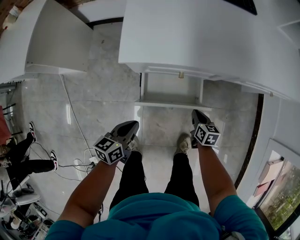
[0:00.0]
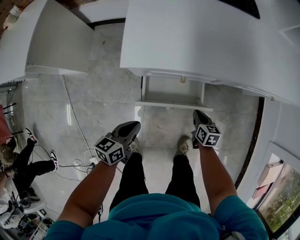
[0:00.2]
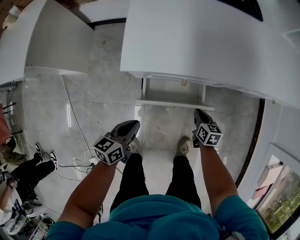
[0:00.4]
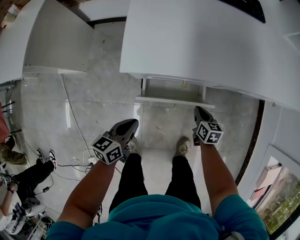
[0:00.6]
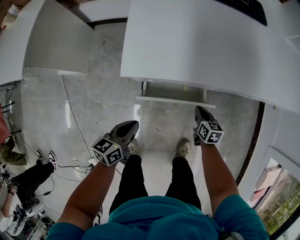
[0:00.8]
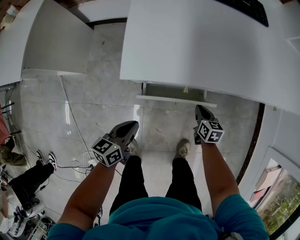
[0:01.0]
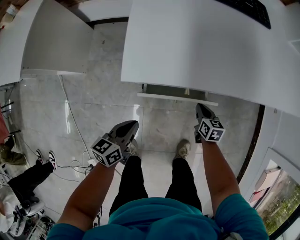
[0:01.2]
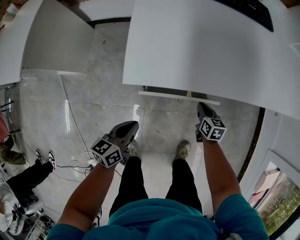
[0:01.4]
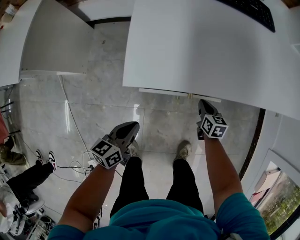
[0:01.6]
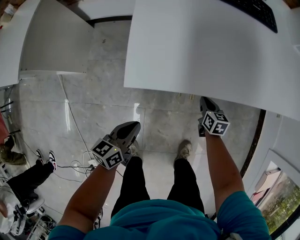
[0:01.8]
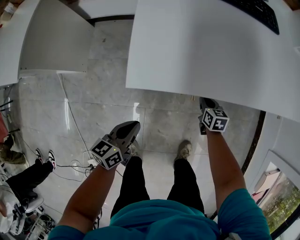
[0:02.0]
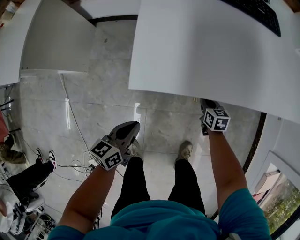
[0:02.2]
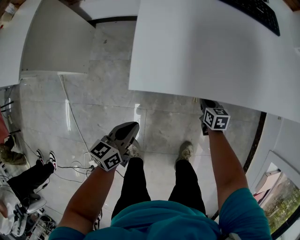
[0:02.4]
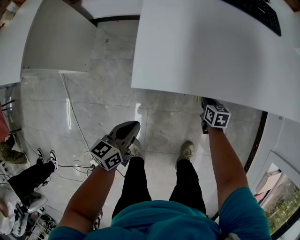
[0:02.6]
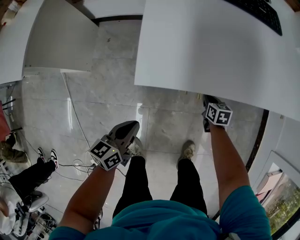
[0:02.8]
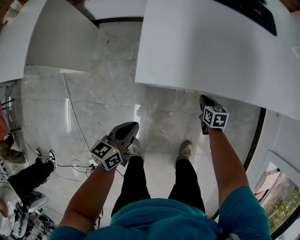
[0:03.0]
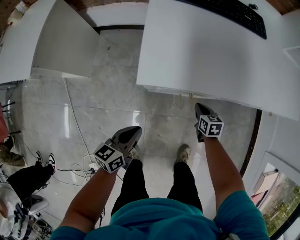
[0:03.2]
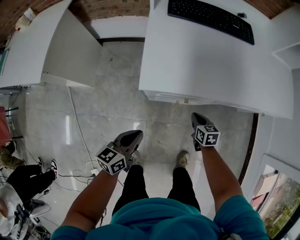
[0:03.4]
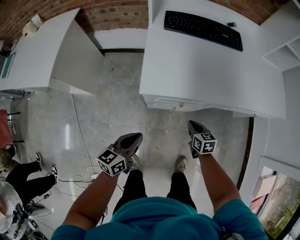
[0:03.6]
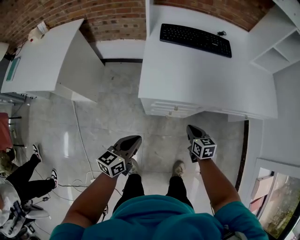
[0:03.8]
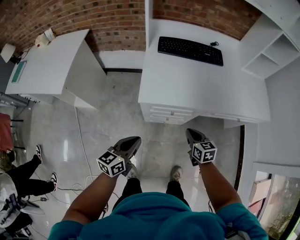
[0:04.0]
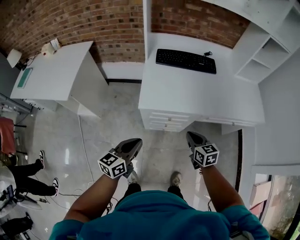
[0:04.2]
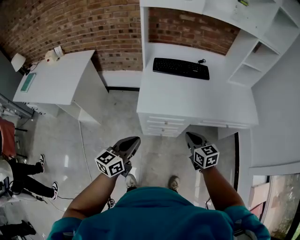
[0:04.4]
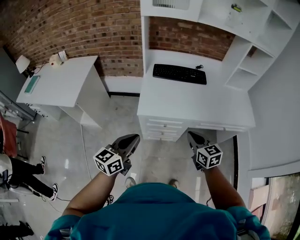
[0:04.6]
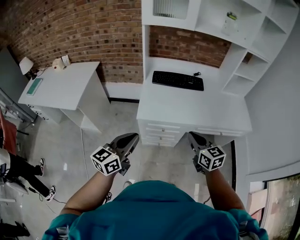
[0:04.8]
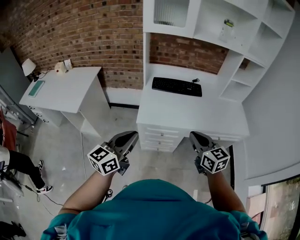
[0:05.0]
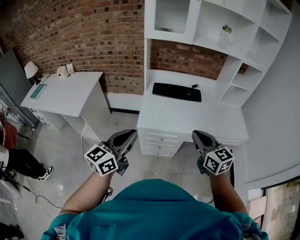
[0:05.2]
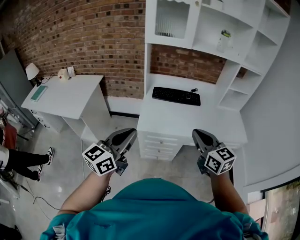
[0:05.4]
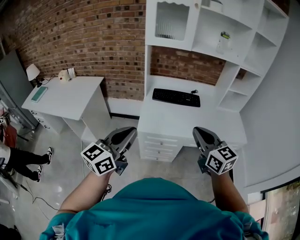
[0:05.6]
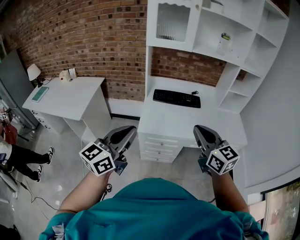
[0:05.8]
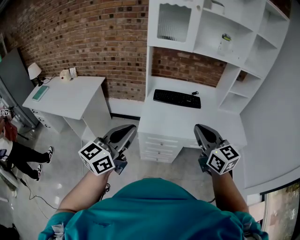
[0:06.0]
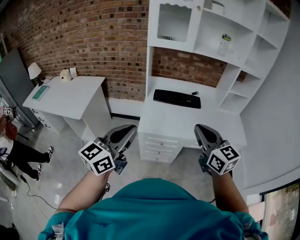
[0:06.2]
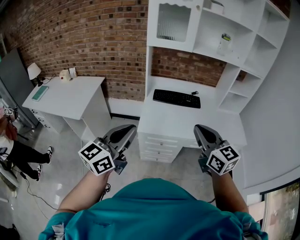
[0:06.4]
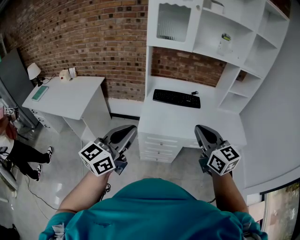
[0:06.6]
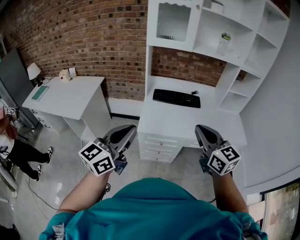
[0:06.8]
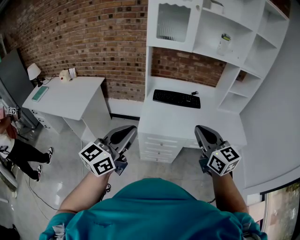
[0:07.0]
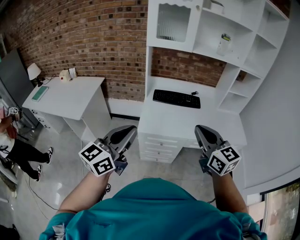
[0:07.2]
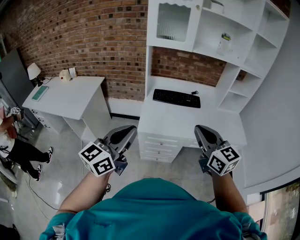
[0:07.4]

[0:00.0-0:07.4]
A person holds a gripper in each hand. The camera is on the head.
0:00.0 to 0:01.4: The left gripper goes some 5 cm forward; the right gripper goes approximately 10 cm forward.
0:01.4 to 0:03.0: There are only small adjustments of the grippers.
0:03.0 to 0:04.4: The grippers both shift upward by approximately 40 cm. The left gripper swivels some 20 degrees; the right gripper swivels approximately 30 degrees.
0:04.4 to 0:06.0: Both grippers move upward, some 30 cm. The left gripper changes its angle by roughly 20 degrees. The right gripper swivels roughly 30 degrees.
0:06.0 to 0:07.4: The two grippers keep their place.

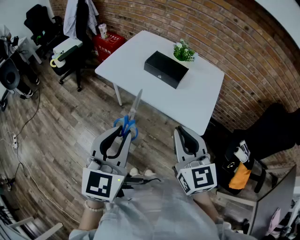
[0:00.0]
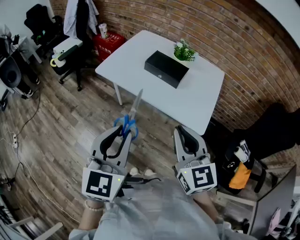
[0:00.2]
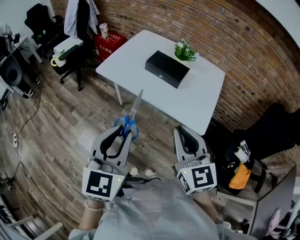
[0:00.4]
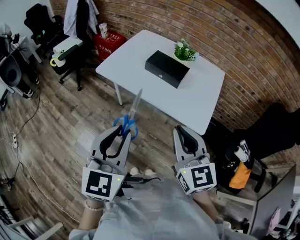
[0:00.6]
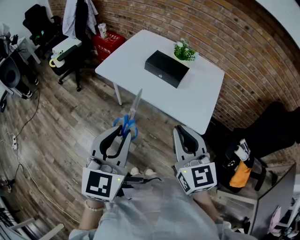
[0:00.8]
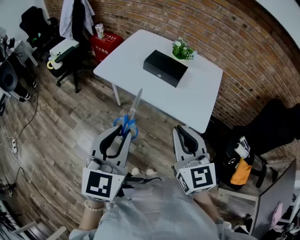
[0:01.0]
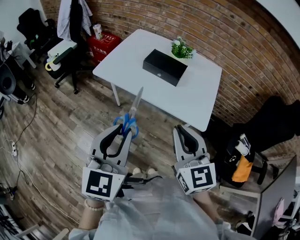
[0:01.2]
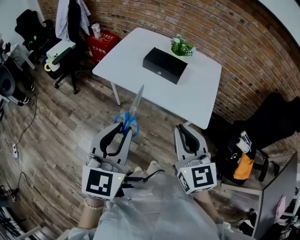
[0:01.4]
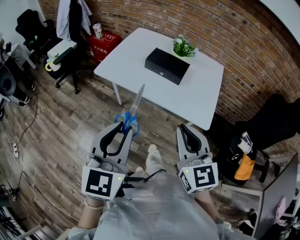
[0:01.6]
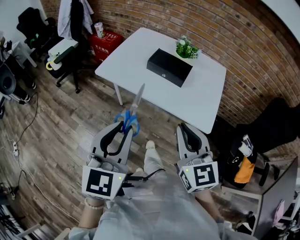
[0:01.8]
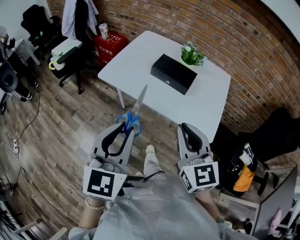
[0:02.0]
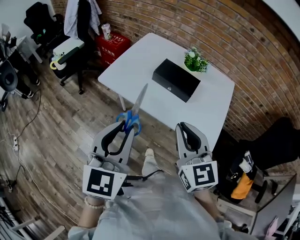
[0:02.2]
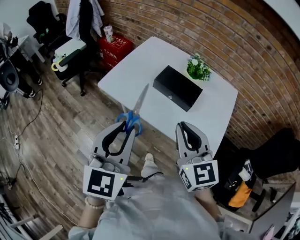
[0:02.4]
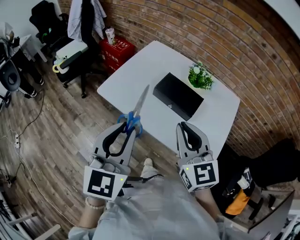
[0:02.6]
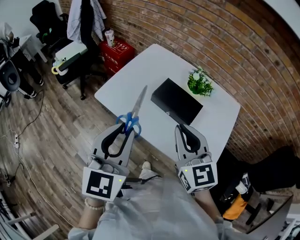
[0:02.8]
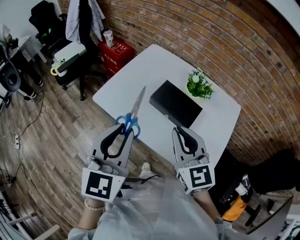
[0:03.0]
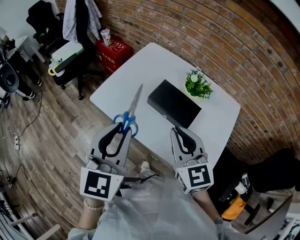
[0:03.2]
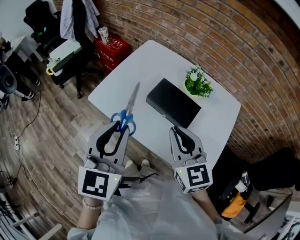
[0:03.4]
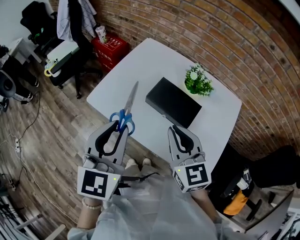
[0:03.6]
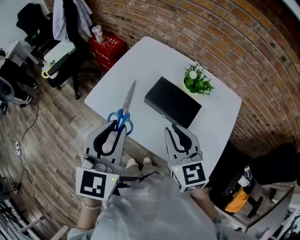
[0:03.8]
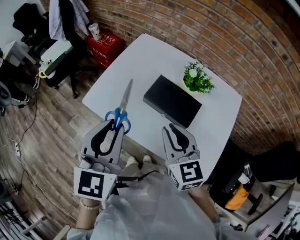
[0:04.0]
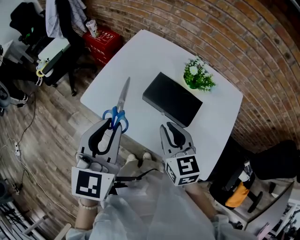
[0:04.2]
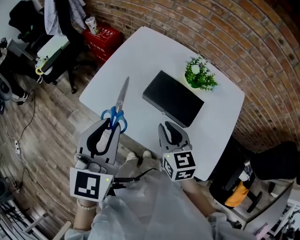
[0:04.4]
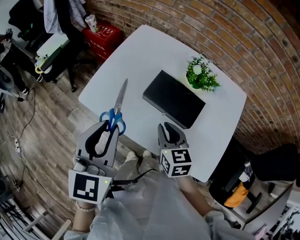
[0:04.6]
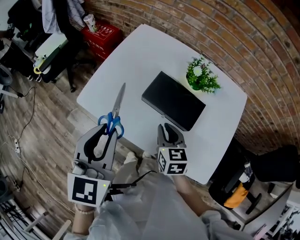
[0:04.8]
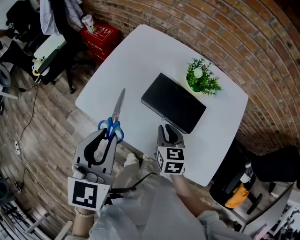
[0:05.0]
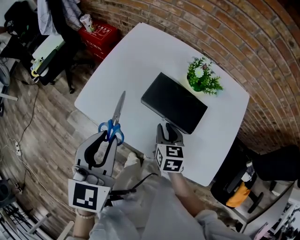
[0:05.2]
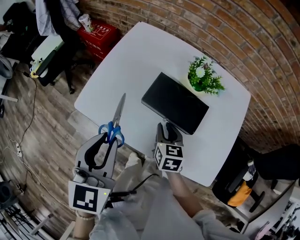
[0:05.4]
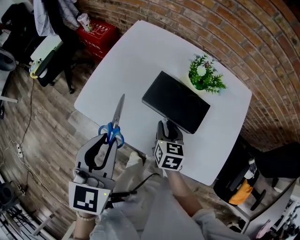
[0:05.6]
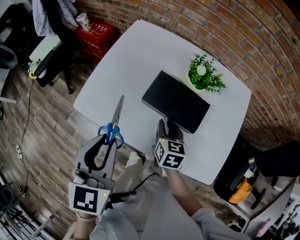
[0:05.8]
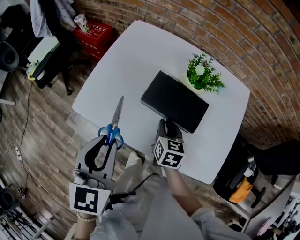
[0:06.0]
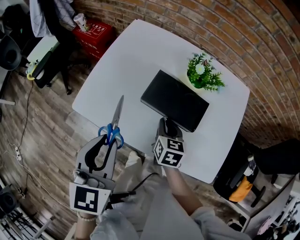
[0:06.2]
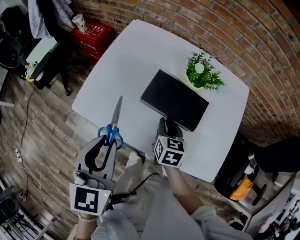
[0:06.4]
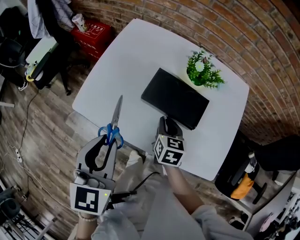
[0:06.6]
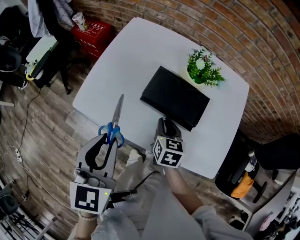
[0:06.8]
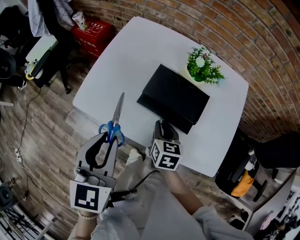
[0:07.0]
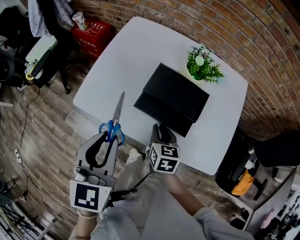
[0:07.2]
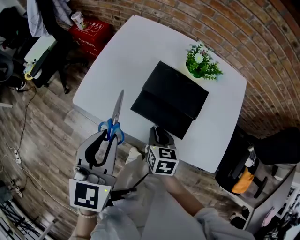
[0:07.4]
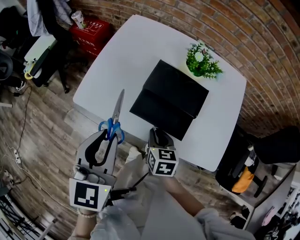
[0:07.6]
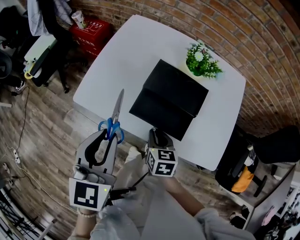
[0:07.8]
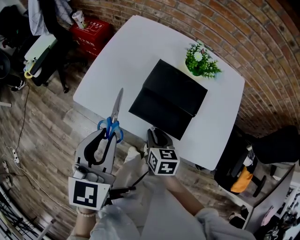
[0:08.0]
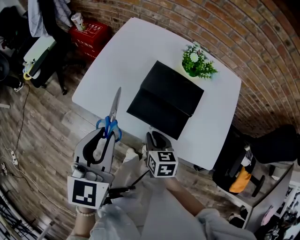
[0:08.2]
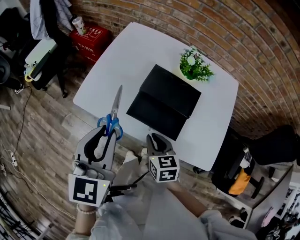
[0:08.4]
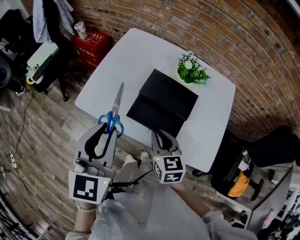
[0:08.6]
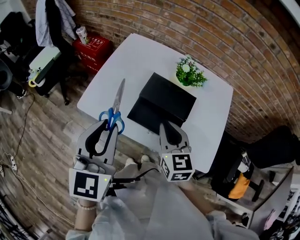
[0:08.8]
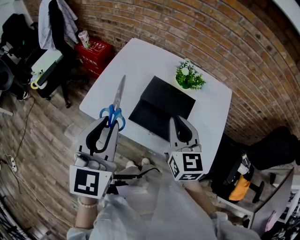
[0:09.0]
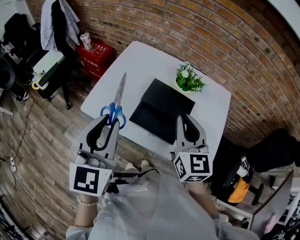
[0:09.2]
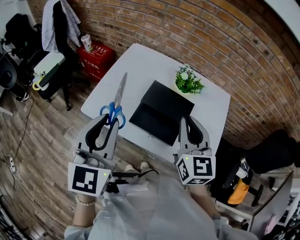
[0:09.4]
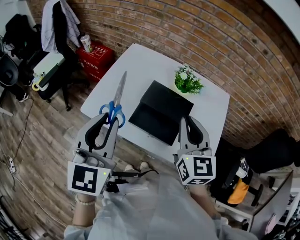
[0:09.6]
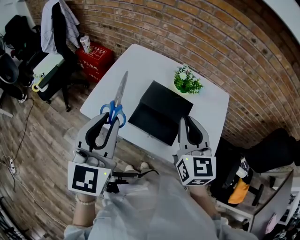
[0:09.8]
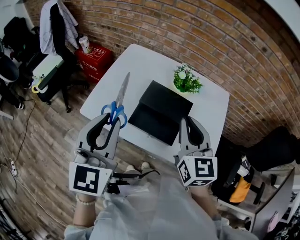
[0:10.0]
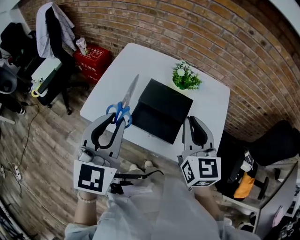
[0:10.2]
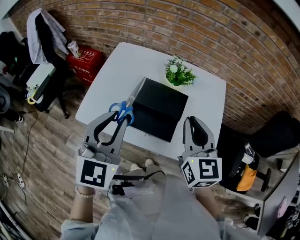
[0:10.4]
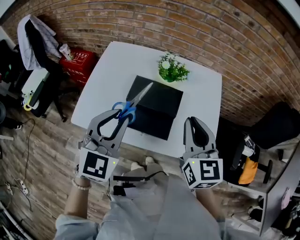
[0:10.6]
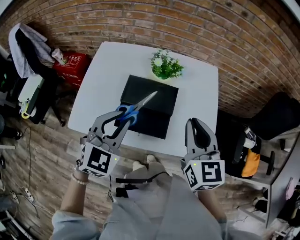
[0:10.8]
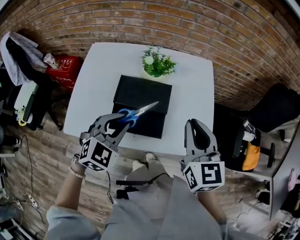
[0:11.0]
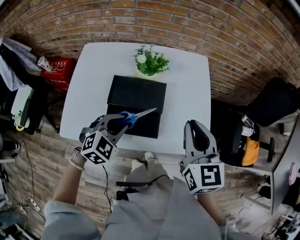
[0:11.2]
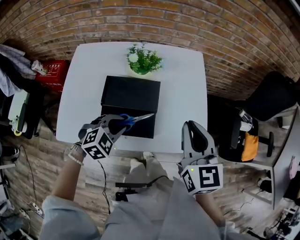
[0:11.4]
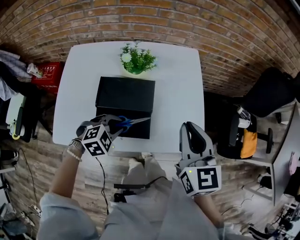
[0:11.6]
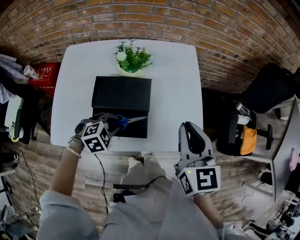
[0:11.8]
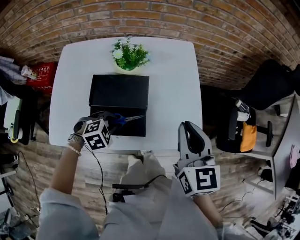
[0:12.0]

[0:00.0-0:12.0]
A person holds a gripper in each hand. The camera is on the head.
0:00.0 to 0:01.6: The grippers make only small movements.
0:01.6 to 0:03.0: The two grippers go roughly 30 cm forward.
0:03.0 to 0:04.4: The left gripper is displaced forward by about 10 cm. Meanwhile the right gripper shifts approximately 15 cm downward and forward, and turns by about 20 degrees.
0:04.4 to 0:06.0: The right gripper is displaced downward and forward by about 15 cm, and swivels some 30 degrees. Meanwhile the left gripper goes approximately 5 cm downward.
0:06.0 to 0:07.6: The right gripper goes about 10 cm backward.
0:07.6 to 0:09.0: The right gripper is displaced upward by approximately 25 cm, and swivels approximately 40 degrees, while the left gripper travels upward by some 10 cm.
0:09.0 to 0:10.4: The right gripper travels to the right by approximately 5 cm; the left gripper shifts by approximately 5 cm, and rotates roughly 20 degrees.
0:10.4 to 0:12.0: The left gripper goes roughly 30 cm downward, and tips its fingers downward by roughly 60 degrees, while the right gripper shifts by some 15 cm.

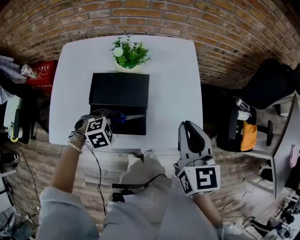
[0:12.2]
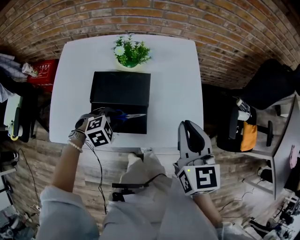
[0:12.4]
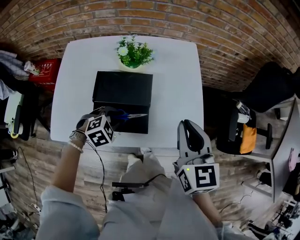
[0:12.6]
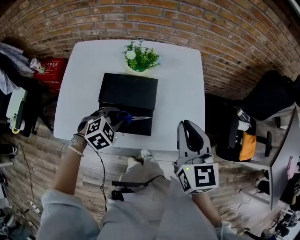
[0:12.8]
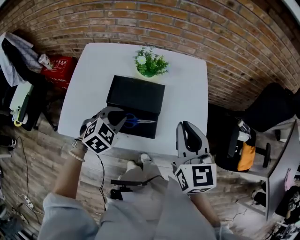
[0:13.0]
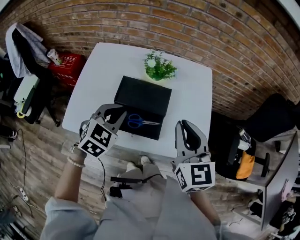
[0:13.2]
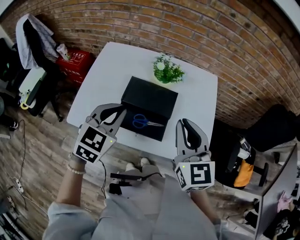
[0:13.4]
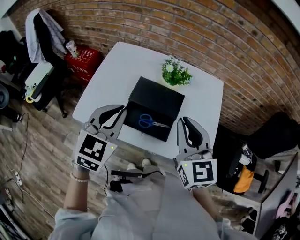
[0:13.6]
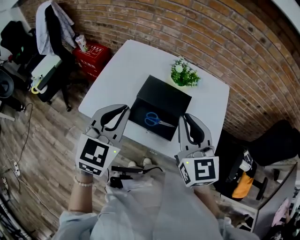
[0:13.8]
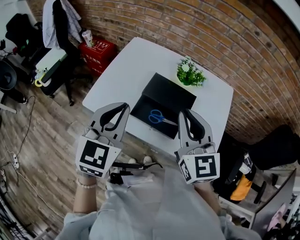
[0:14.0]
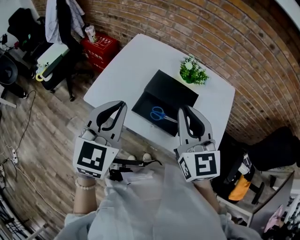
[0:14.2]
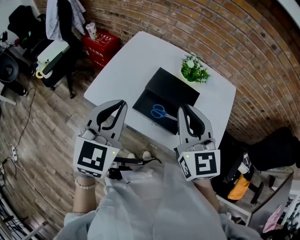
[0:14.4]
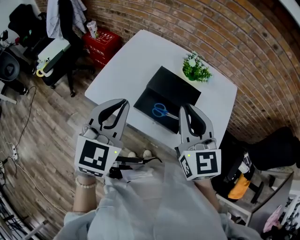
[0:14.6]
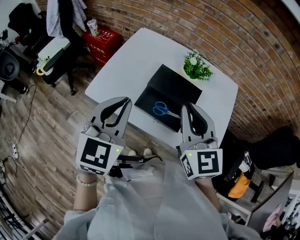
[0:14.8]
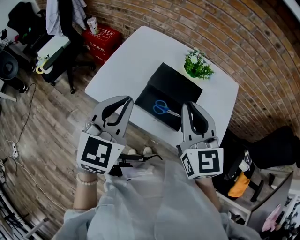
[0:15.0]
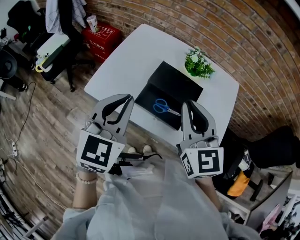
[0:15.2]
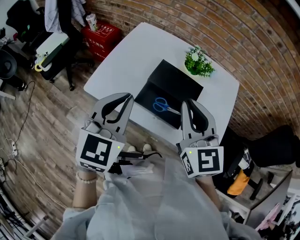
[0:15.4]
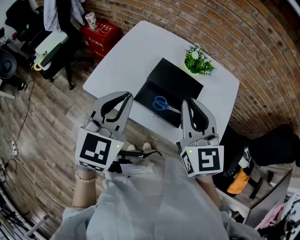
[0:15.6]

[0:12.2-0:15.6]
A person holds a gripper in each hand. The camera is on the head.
0:12.2 to 0:13.8: The left gripper heads upward, covering some 30 cm, and points its fingers approximately 50 degrees further upward. Meanwhile the right gripper changes place by roughly 15 cm, and turns by roughly 30 degrees.
0:13.8 to 0:15.6: There are only small adjustments of the grippers.

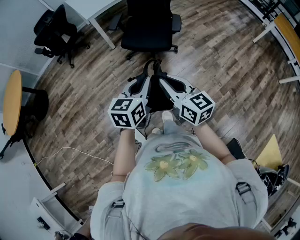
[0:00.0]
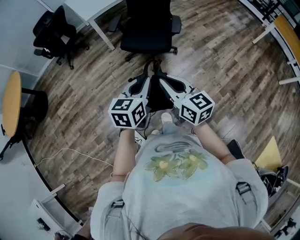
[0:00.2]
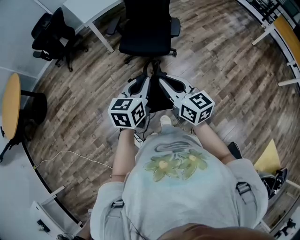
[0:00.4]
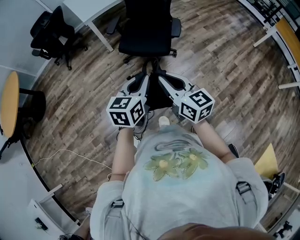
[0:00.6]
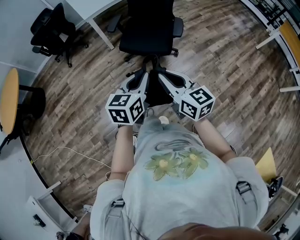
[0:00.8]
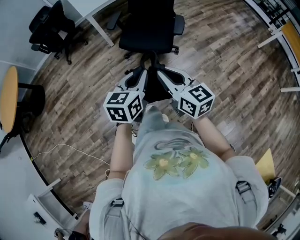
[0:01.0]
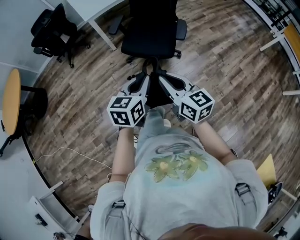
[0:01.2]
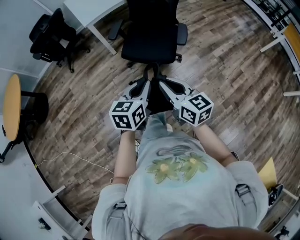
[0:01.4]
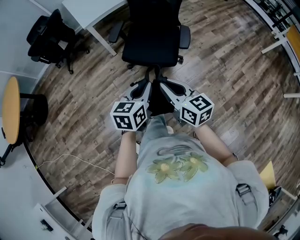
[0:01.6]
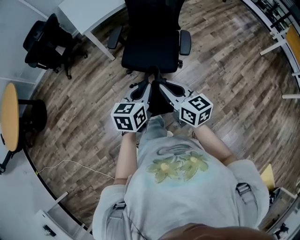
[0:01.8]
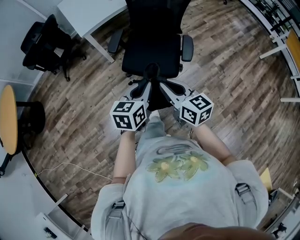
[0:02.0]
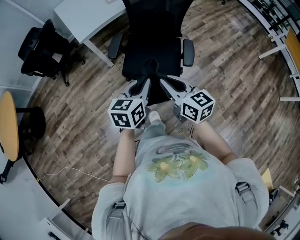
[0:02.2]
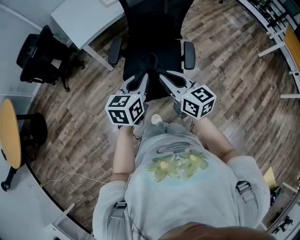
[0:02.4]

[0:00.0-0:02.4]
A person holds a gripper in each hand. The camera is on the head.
0:00.0 to 0:01.2: The two grippers go some 10 cm forward.
0:01.2 to 0:02.4: The two grippers go some 30 cm forward.
